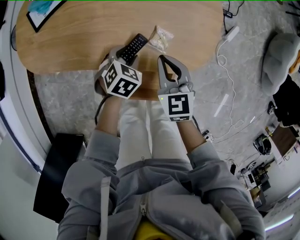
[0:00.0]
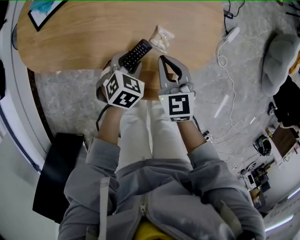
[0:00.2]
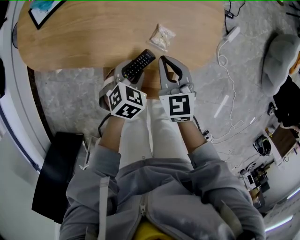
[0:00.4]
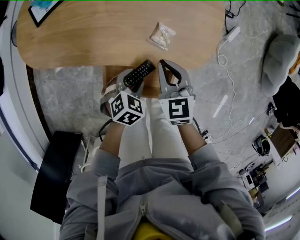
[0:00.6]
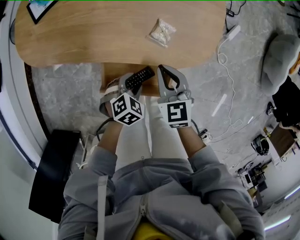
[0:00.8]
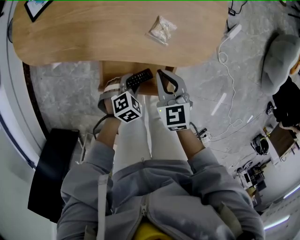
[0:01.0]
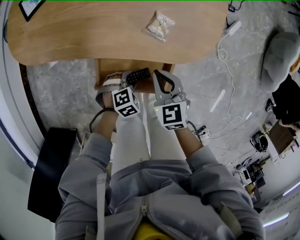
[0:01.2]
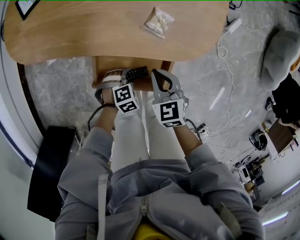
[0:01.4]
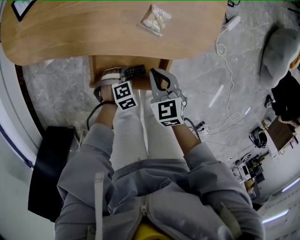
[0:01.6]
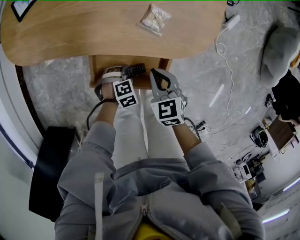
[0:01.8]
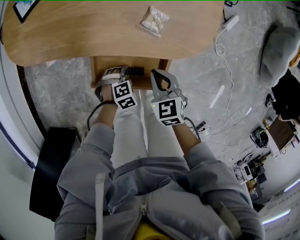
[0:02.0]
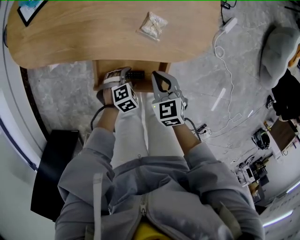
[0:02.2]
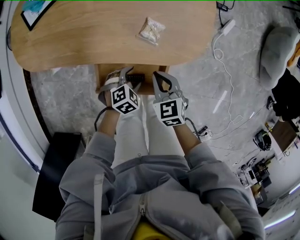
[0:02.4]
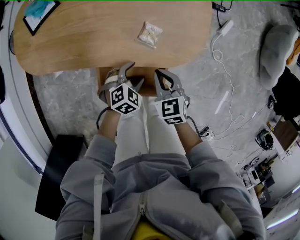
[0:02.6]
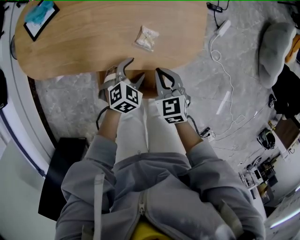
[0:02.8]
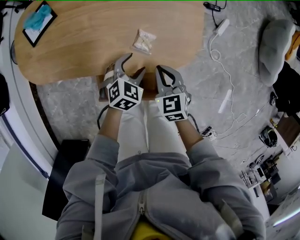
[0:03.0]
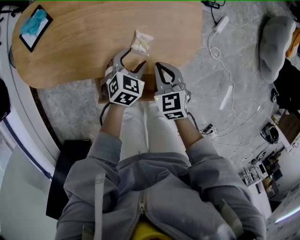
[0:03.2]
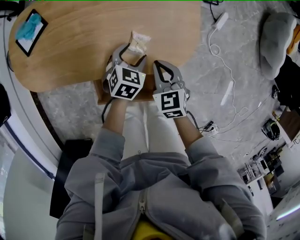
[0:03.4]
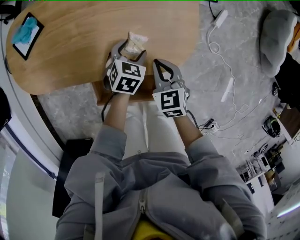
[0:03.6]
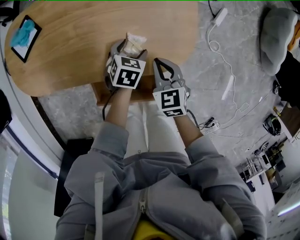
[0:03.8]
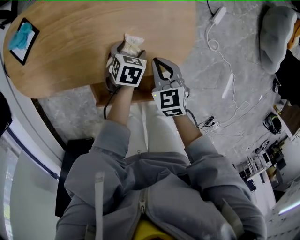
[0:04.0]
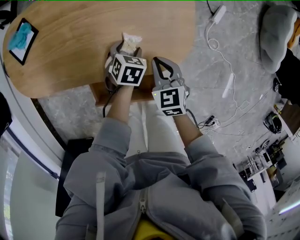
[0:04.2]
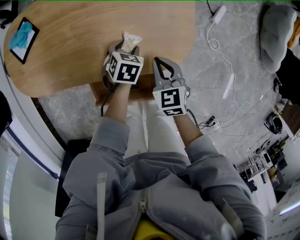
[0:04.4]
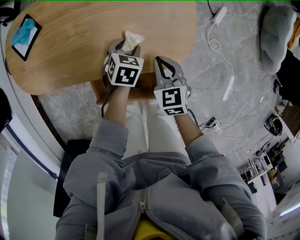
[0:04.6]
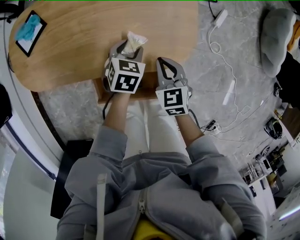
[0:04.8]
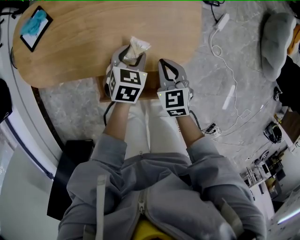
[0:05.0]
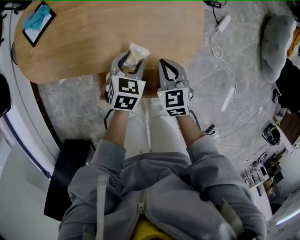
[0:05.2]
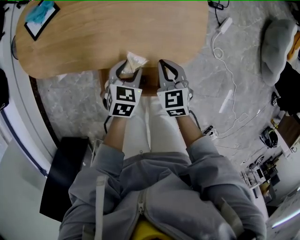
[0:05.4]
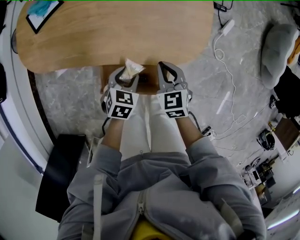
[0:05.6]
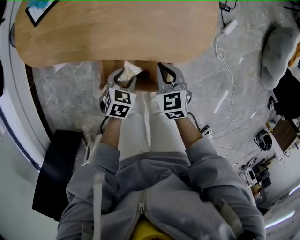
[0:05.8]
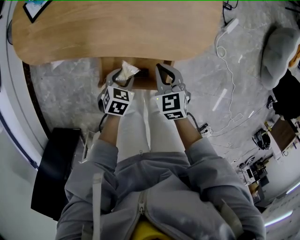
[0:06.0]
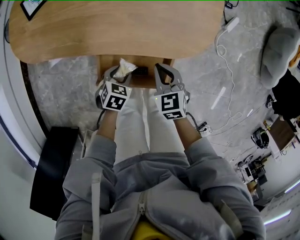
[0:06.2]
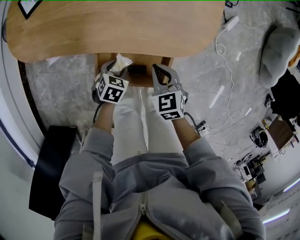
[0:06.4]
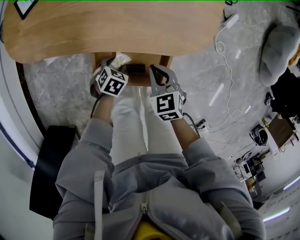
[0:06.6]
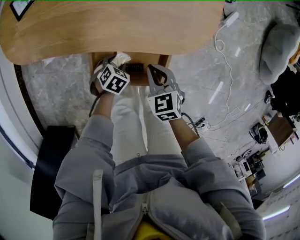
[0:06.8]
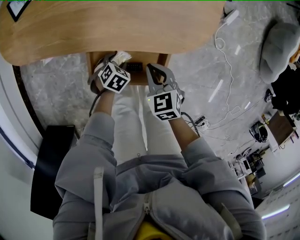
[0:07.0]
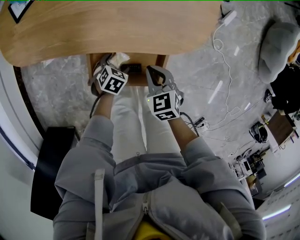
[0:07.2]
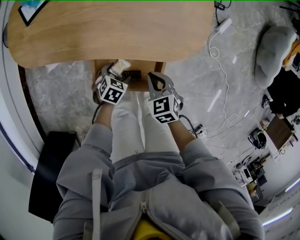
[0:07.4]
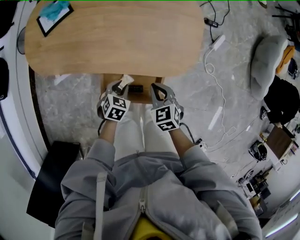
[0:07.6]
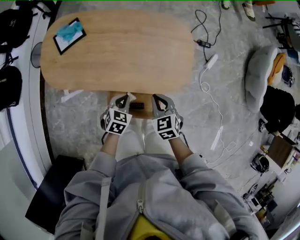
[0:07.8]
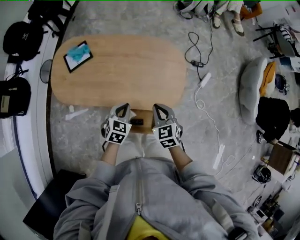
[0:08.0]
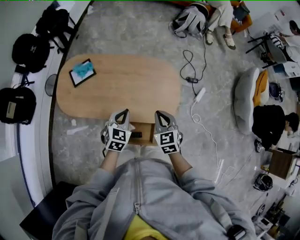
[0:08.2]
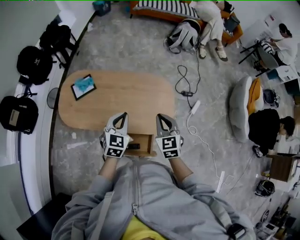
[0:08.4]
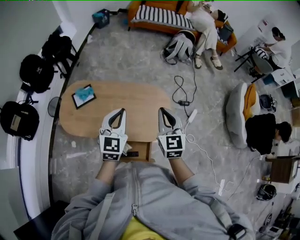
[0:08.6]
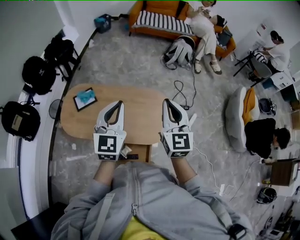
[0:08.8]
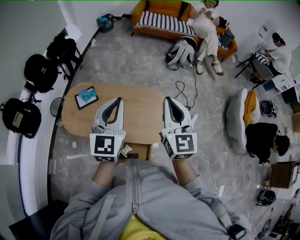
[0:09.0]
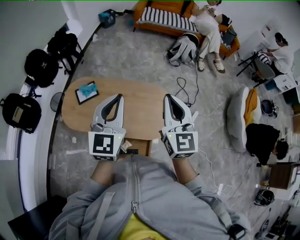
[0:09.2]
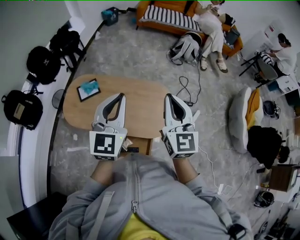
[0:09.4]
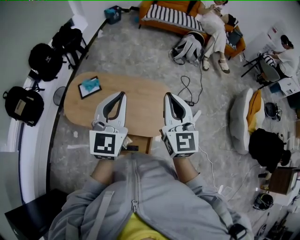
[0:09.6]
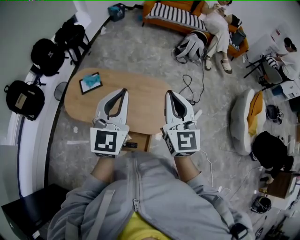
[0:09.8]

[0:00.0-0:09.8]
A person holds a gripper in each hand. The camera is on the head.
0:00.0 to 0:01.4: The right gripper moves approximately 15 cm; the left gripper moves some 25 cm, and turns by about 30 degrees.
0:01.4 to 0:02.8: The right gripper changes place by approximately 10 cm, while the left gripper changes place by some 20 cm, and rotates approximately 30 degrees.
0:02.8 to 0:04.2: The right gripper heads forward, covering approximately 10 cm. Meanwhile the left gripper shifts about 15 cm forward and downward, and rotates some 30 degrees.
0:04.2 to 0:05.6: The right gripper moves backward, roughly 10 cm; the left gripper travels backward by approximately 15 cm.
0:05.6 to 0:07.0: The right gripper shifts by roughly 10 cm; the left gripper moves downward, approximately 15 cm, and rotates about 20 degrees.
0:07.0 to 0:08.4: The grippers both shift upward by about 50 cm. The right gripper changes its angle by some 30 degrees; the left gripper tips its fingers upward by some 40 degrees, and closes its fingers.
0:08.4 to 0:09.8: The grippers both shift upward by approximately 25 cm. The left gripper rotates some 30 degrees, while the right gripper changes its angle by about 30 degrees.

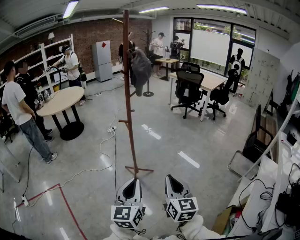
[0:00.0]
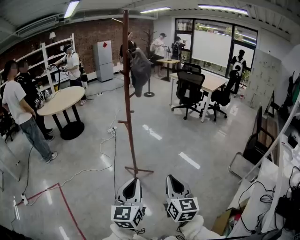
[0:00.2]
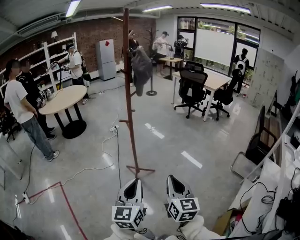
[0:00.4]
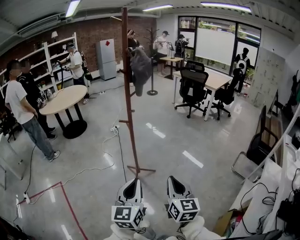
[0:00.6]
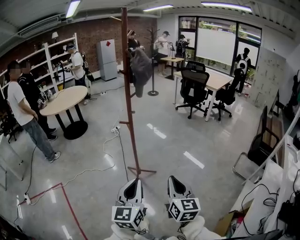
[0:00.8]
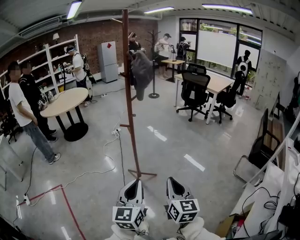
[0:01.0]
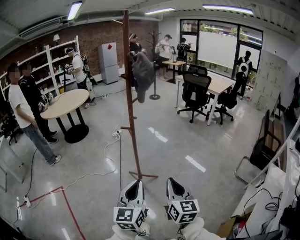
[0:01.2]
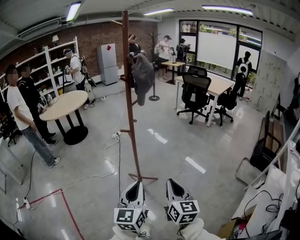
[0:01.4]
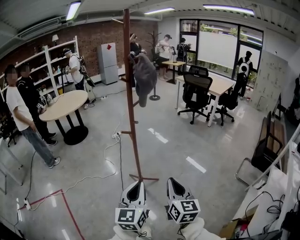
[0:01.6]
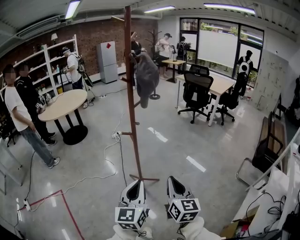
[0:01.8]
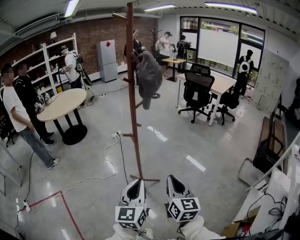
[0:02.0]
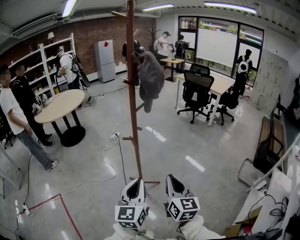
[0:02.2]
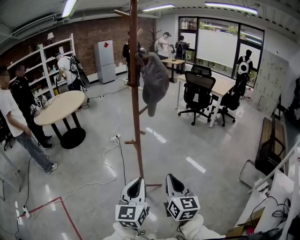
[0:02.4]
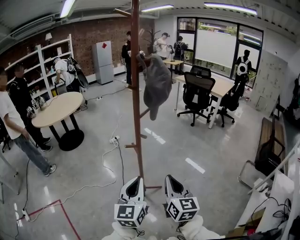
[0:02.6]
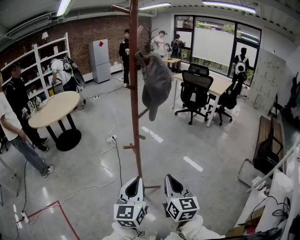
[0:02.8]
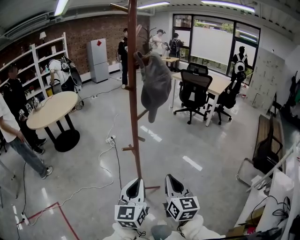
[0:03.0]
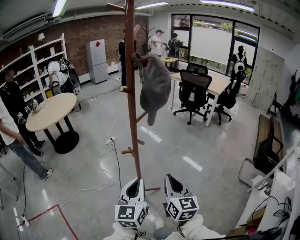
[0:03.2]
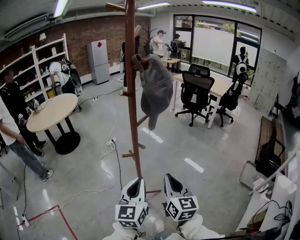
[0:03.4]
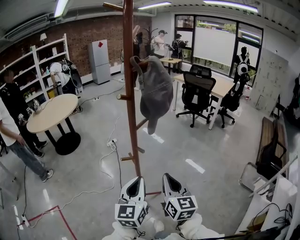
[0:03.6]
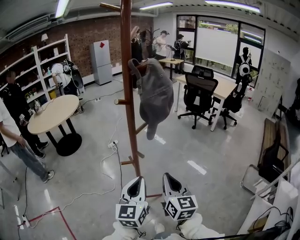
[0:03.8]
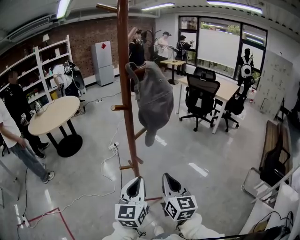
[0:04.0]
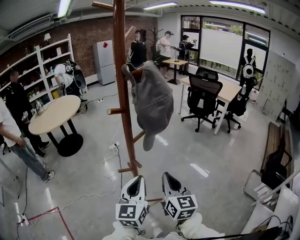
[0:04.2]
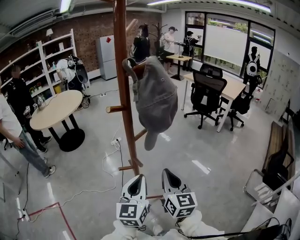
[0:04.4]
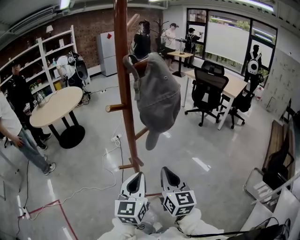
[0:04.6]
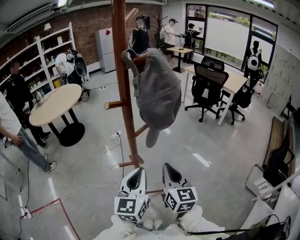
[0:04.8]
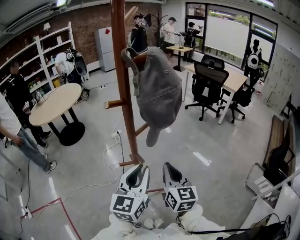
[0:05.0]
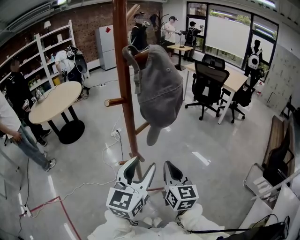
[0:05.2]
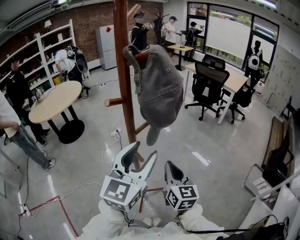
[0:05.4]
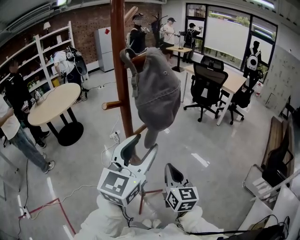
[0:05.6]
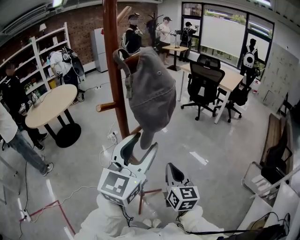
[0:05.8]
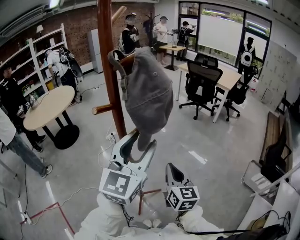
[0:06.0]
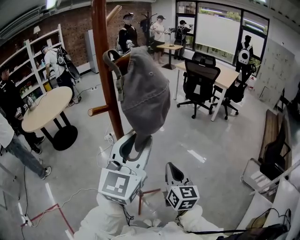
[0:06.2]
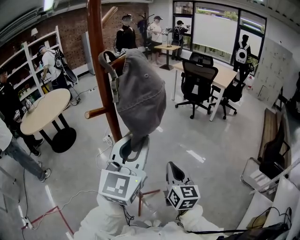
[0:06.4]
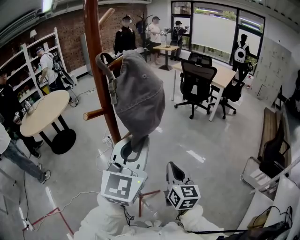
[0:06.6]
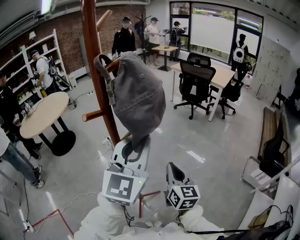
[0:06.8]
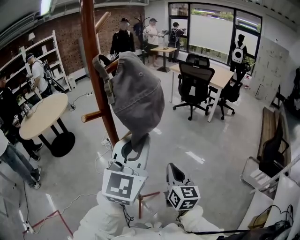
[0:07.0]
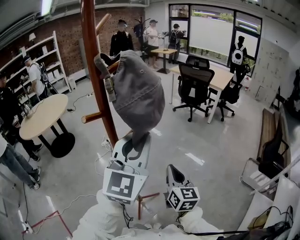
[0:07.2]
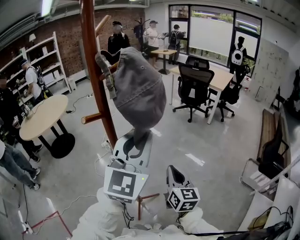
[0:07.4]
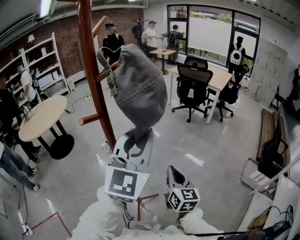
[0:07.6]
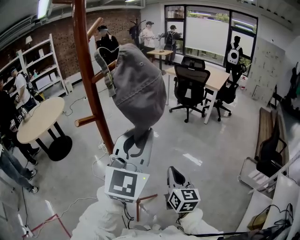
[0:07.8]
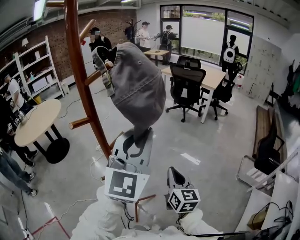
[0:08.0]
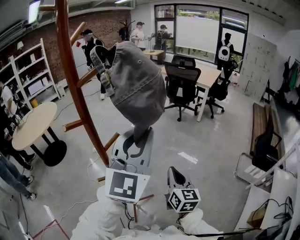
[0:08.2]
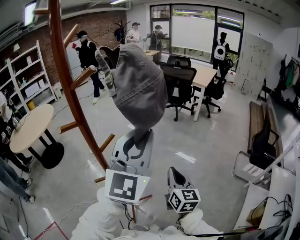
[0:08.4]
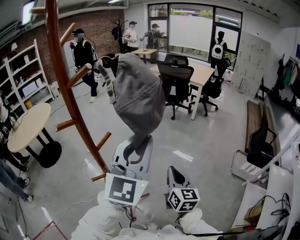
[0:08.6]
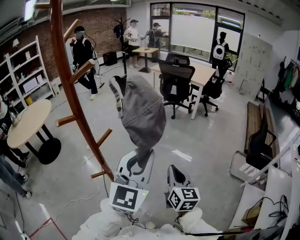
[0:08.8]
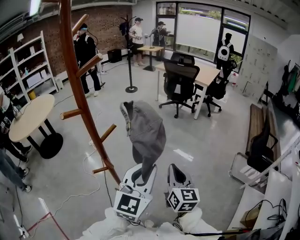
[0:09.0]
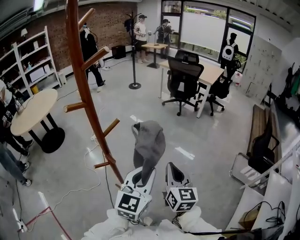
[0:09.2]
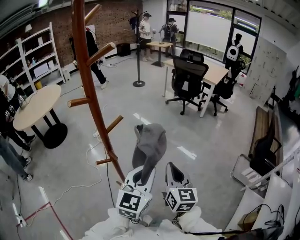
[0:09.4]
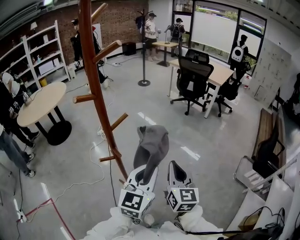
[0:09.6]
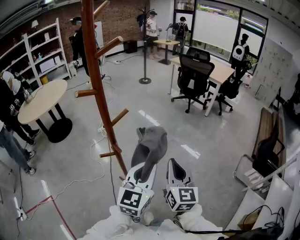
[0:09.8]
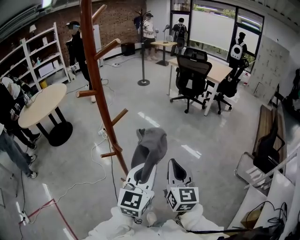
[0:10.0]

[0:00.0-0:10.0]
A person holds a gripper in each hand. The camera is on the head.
0:00.0 to 0:01.4: The two grippers go about 5 cm forward.
0:01.4 to 0:02.8: The two grippers go some 15 cm forward and to the left.
0:02.8 to 0:04.2: The two grippers go approximately 15 cm forward.
0:04.2 to 0:05.8: The left gripper is displaced upward by some 15 cm, changes its angle by some 20 degrees, and opens.
0:05.8 to 0:07.2: The left gripper closes its fingers.
0:07.2 to 0:08.6: The two grippers go about 10 cm to the right.
0:08.6 to 0:10.0: The left gripper heads downward and backward, covering about 20 cm, and swivels about 20 degrees. The right gripper heads backward, covering roughly 5 cm.

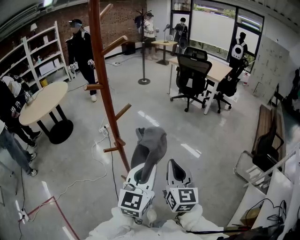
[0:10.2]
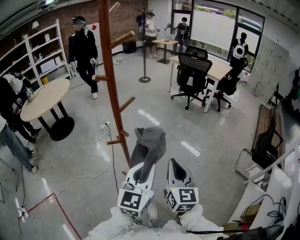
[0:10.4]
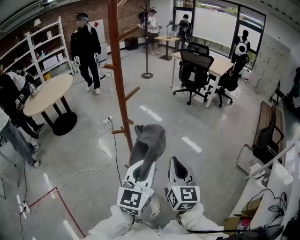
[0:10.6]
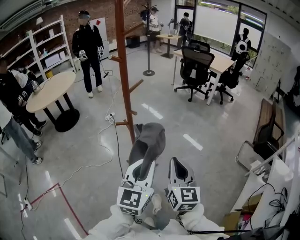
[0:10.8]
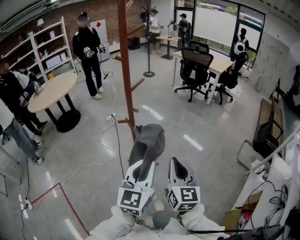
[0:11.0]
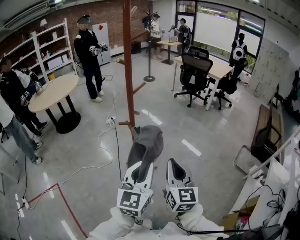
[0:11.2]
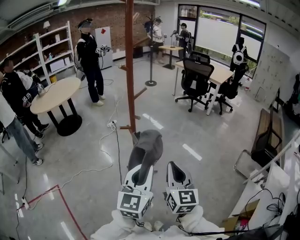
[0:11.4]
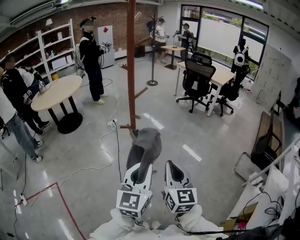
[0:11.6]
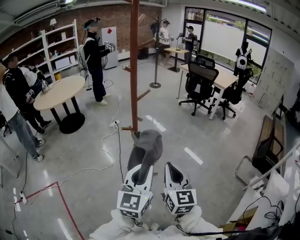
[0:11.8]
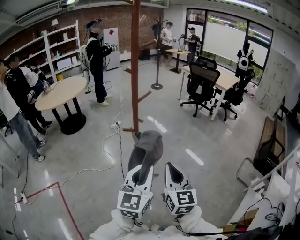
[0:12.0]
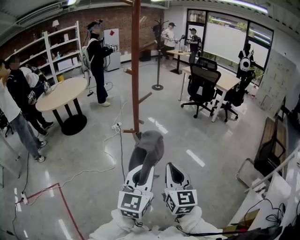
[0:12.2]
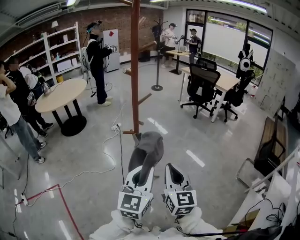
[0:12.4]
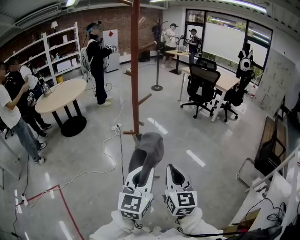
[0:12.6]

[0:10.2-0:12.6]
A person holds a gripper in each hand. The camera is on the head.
0:10.2 to 0:11.4: The grippers both shift backward by some 15 cm.
0:11.4 to 0:12.6: The grippers make only small movements.

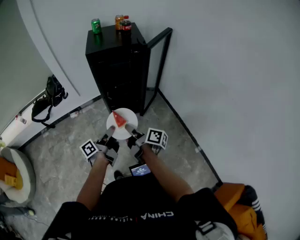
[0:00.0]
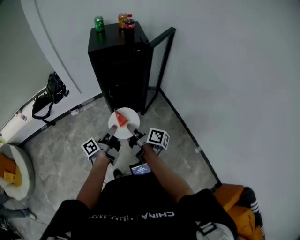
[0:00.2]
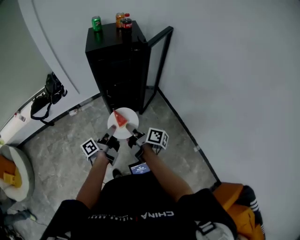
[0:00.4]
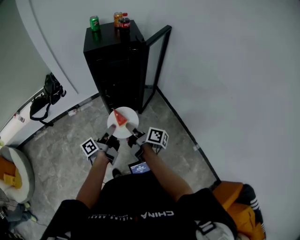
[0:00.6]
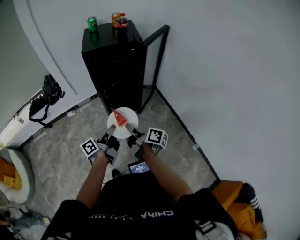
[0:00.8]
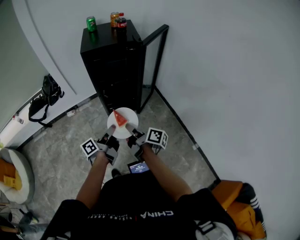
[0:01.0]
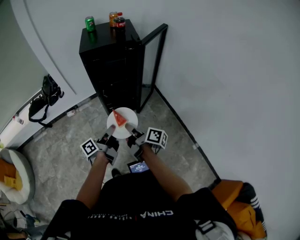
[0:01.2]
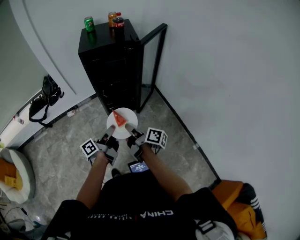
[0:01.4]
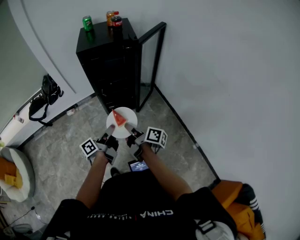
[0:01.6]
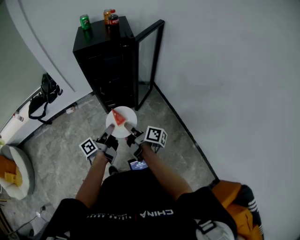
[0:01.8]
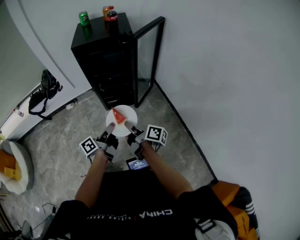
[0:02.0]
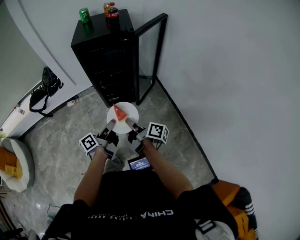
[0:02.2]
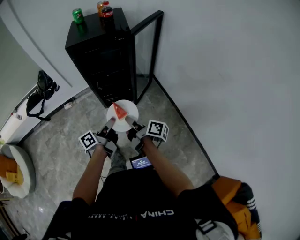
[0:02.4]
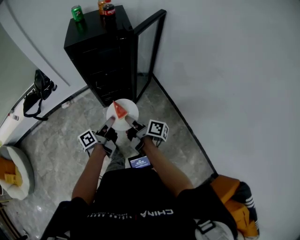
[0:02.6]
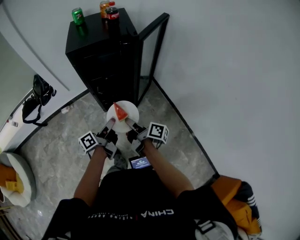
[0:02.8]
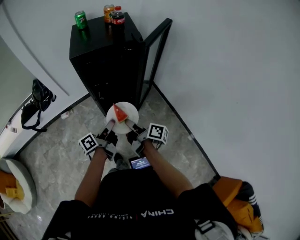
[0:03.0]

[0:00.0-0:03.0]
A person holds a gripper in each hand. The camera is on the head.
0:00.0 to 0:01.6: The grippers both shift to the right by roughly 5 cm.
0:01.6 to 0:03.0: The grippers both shift forward by approximately 15 cm.
